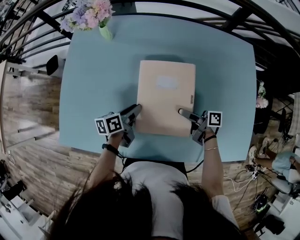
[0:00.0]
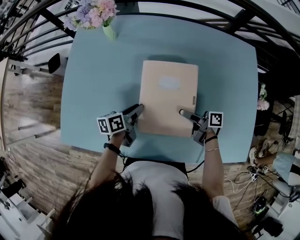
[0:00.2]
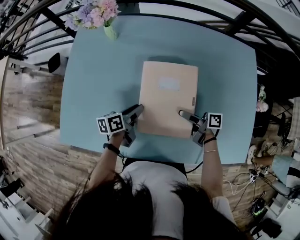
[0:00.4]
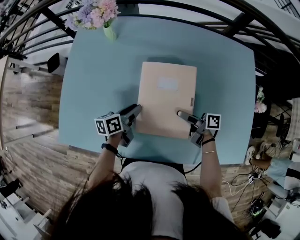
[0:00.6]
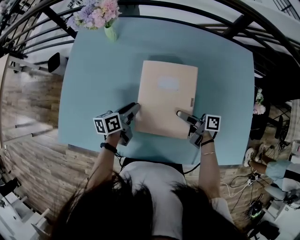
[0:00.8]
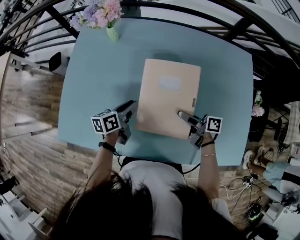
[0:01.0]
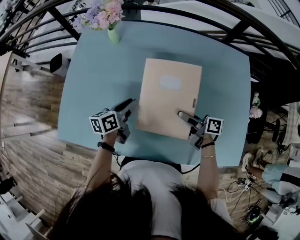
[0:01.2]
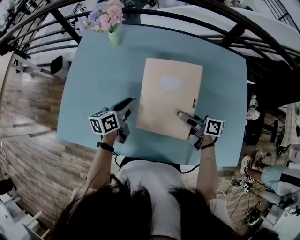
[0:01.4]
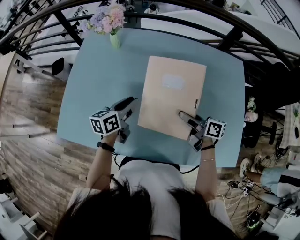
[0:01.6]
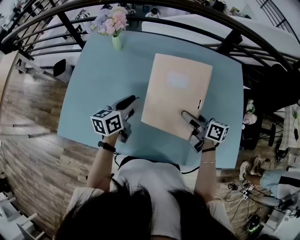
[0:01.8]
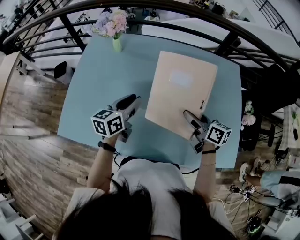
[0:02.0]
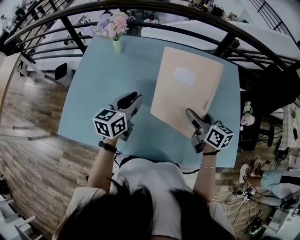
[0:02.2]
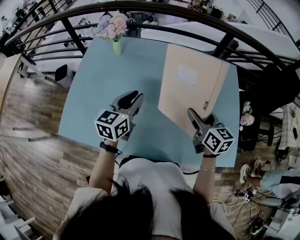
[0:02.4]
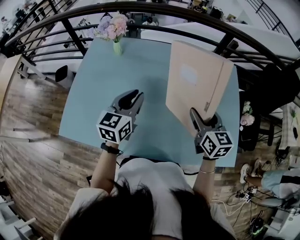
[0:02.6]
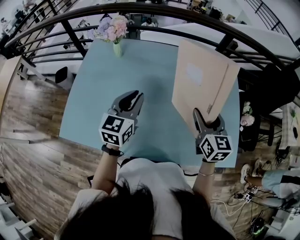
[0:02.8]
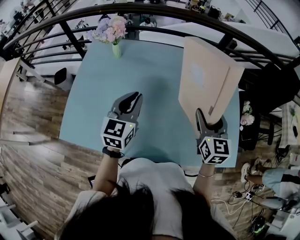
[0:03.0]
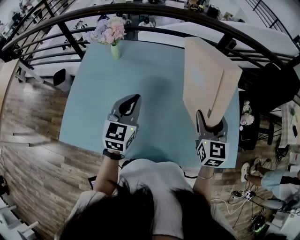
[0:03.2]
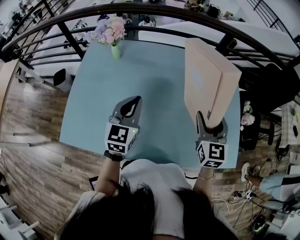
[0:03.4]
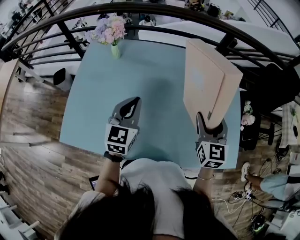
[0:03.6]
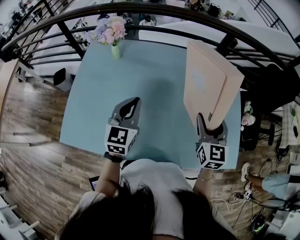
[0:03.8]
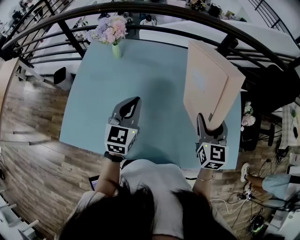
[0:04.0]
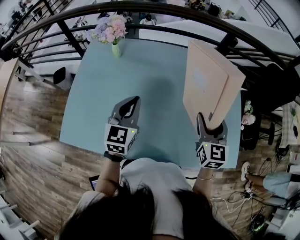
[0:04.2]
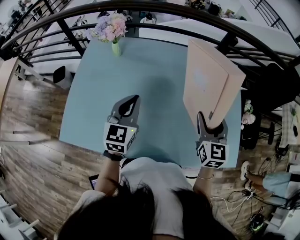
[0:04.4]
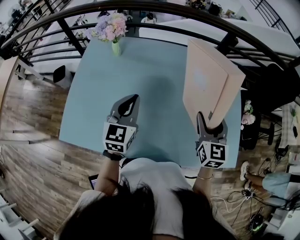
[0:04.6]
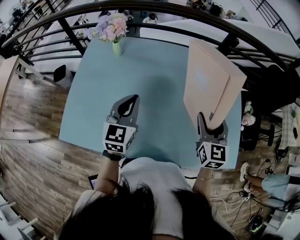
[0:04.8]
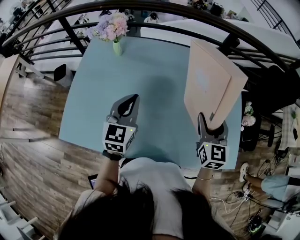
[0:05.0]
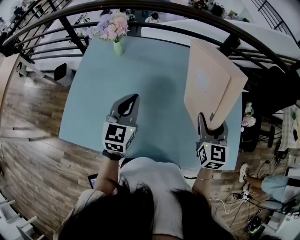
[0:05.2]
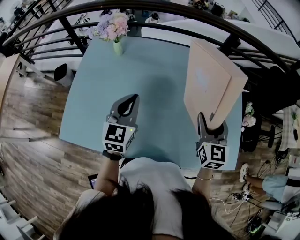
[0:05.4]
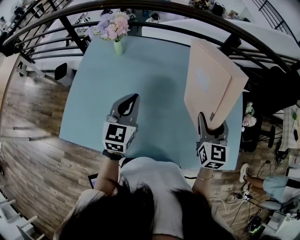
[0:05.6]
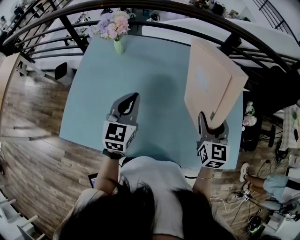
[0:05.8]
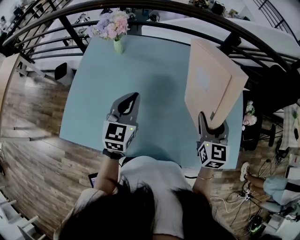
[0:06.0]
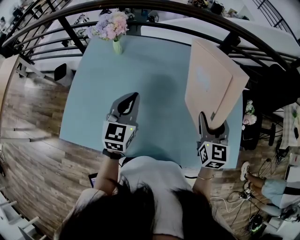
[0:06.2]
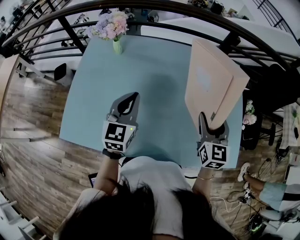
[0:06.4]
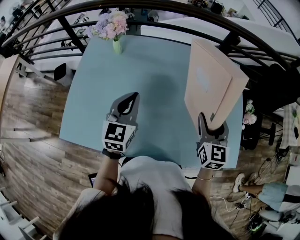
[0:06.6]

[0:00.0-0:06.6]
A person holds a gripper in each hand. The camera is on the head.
0:00.0 to 0:01.6: Both grippers travel together upward, approximately 10 cm. The right gripper turns by some 20 degrees. Meanwhile the left gripper rotates approximately 20 degrees.
0:01.6 to 0:03.2: The left gripper travels upward by roughly 15 cm, rolls clockwise, seen from behind, by some 40 degrees, and closes; the right gripper shifts some 15 cm upward and to the right, and changes its angle by roughly 70 degrees.
0:03.2 to 0:05.0: The grippers stay close to where they were, moving slightly.
0:05.0 to 0:06.6: Both grippers stay about where they are.

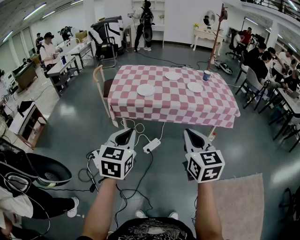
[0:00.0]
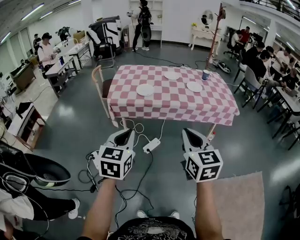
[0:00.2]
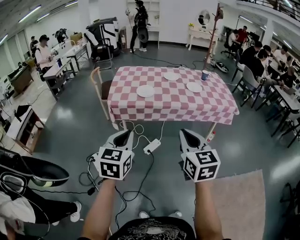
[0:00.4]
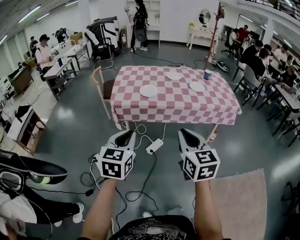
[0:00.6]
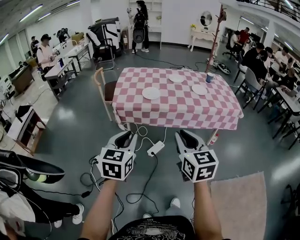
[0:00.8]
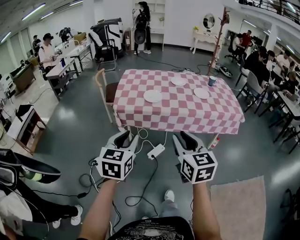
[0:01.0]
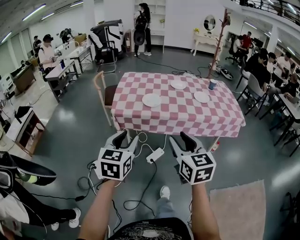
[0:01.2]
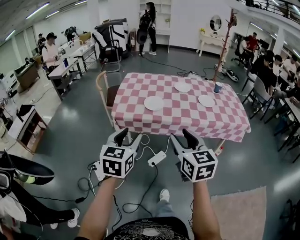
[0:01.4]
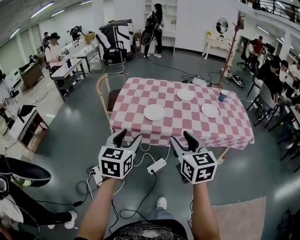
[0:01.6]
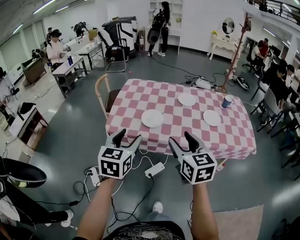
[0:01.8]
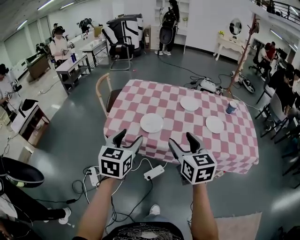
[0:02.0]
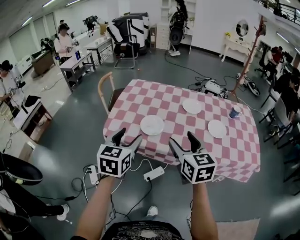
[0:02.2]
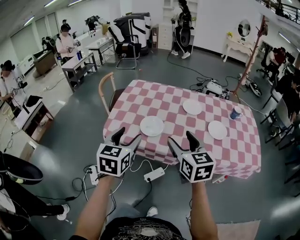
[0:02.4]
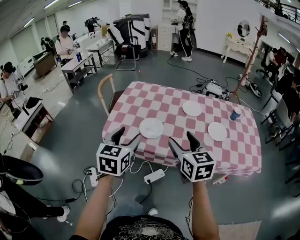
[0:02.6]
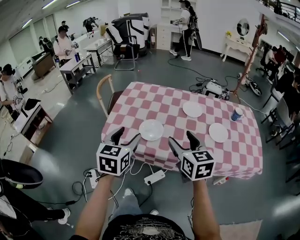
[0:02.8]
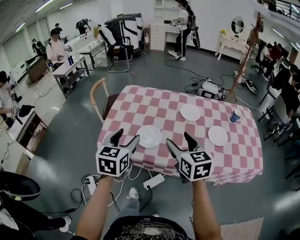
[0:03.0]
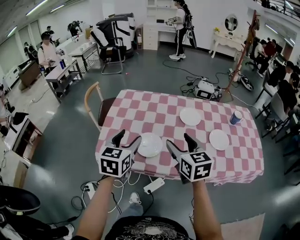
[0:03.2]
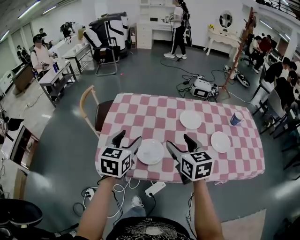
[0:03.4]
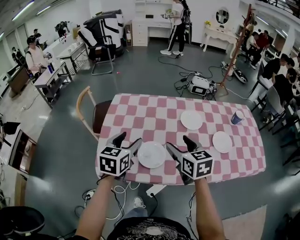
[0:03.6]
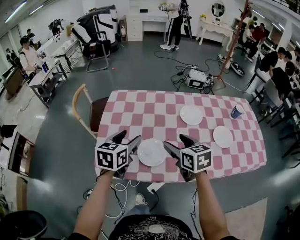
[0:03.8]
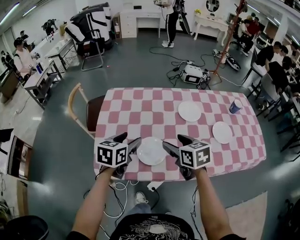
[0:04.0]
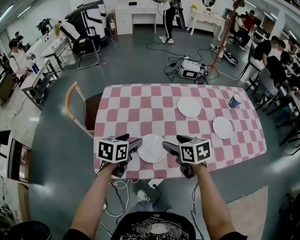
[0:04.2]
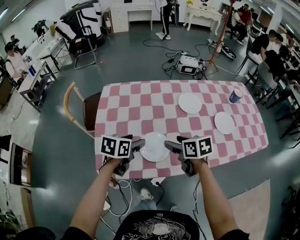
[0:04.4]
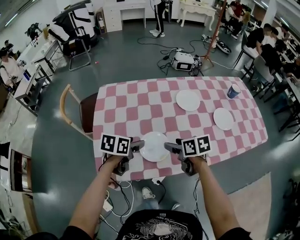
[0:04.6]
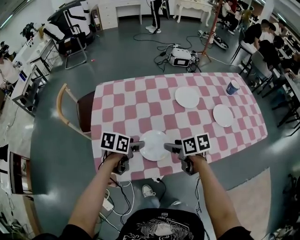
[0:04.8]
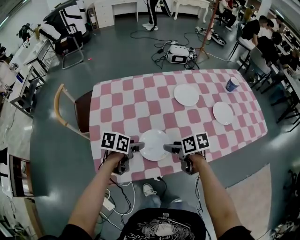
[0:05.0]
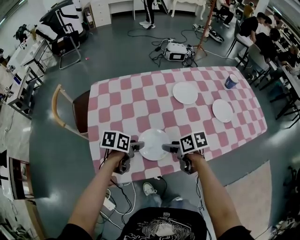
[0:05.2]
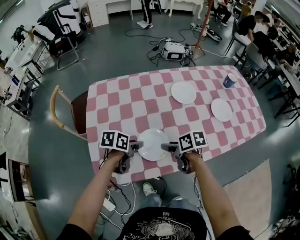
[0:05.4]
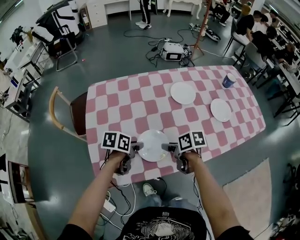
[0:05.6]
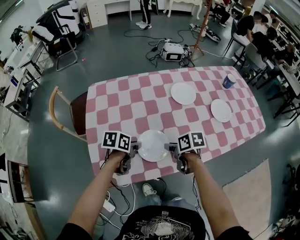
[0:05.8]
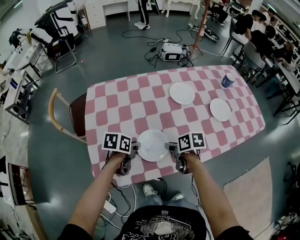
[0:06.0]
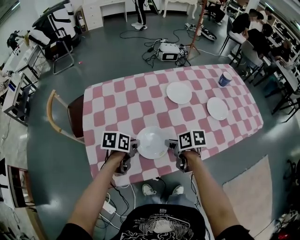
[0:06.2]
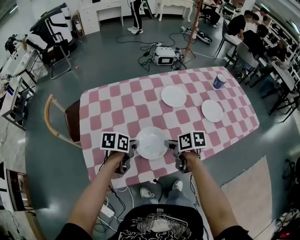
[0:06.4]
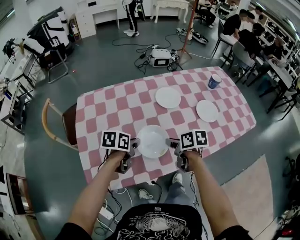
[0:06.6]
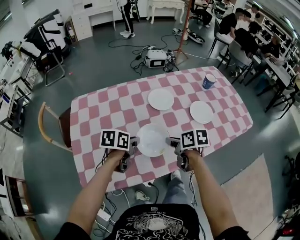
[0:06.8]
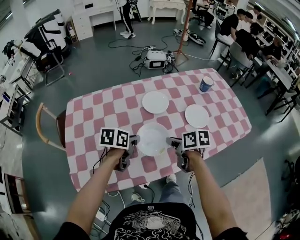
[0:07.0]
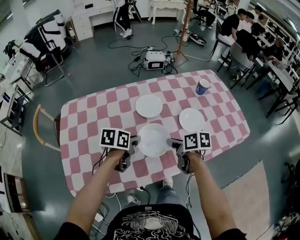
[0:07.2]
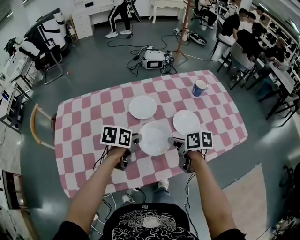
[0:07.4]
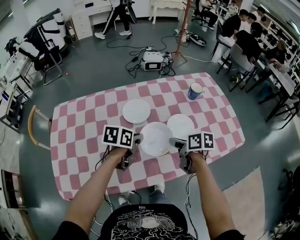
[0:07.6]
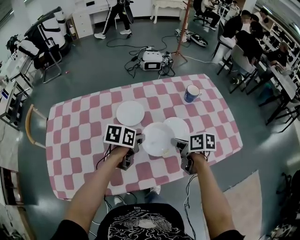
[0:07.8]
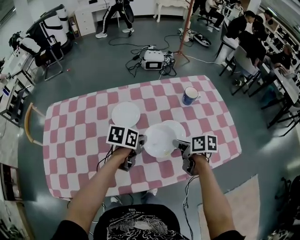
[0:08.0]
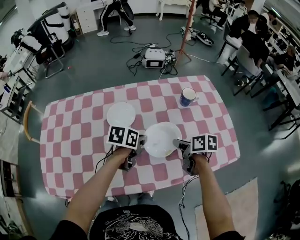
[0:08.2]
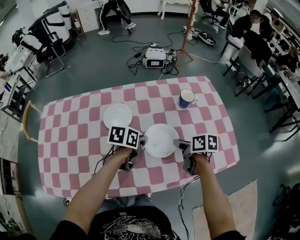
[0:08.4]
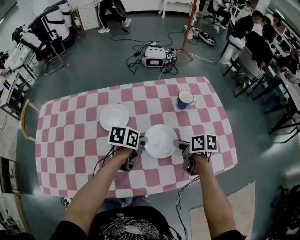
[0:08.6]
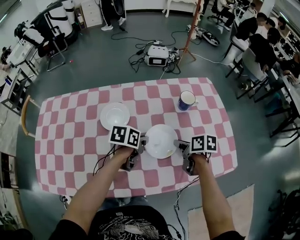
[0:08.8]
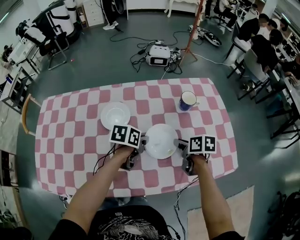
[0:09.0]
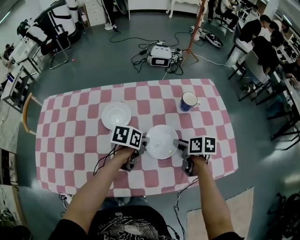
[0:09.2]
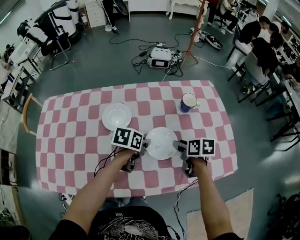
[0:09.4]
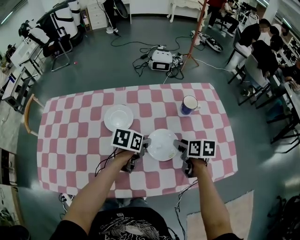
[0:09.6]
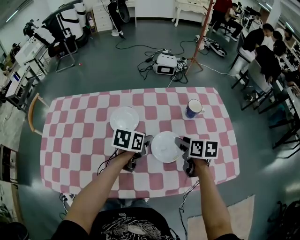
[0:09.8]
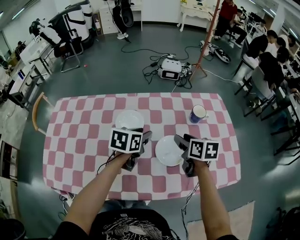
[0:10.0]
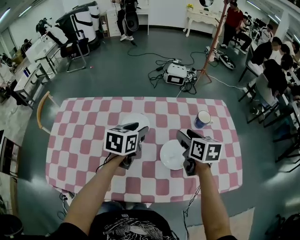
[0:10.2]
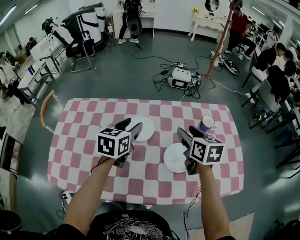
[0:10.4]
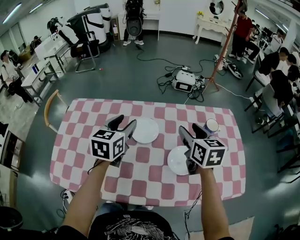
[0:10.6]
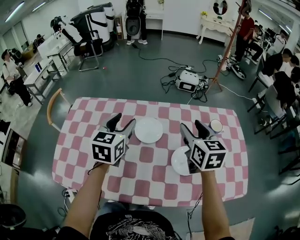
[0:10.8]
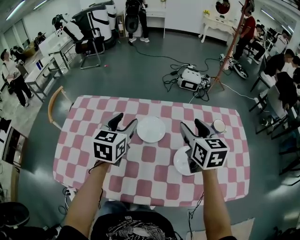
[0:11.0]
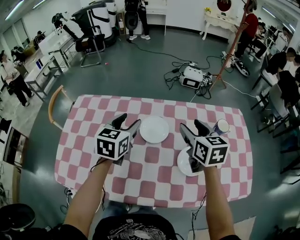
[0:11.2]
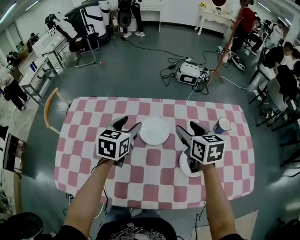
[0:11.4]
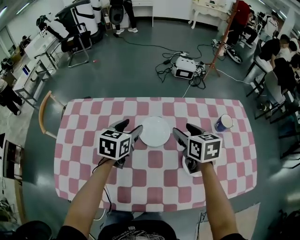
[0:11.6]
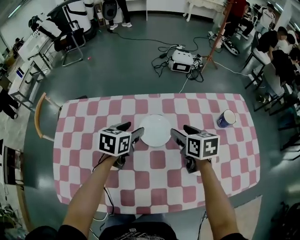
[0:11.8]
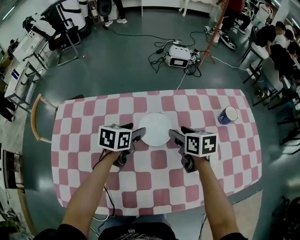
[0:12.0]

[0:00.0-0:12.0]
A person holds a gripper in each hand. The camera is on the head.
0:00.0 to 0:01.6: The grippers both shift forward by approximately 25 cm. The right gripper opens its fingers. Meanwhile the left gripper opens up.
0:01.6 to 0:03.0: Both grippers move forward, approximately 25 cm.
0:03.0 to 0:04.4: The two grippers go about 20 cm downward and forward. The right gripper swivels some 30 degrees. The left gripper rotates approximately 40 degrees.
0:04.4 to 0:06.0: The grippers both shift downward by some 10 cm. The left gripper changes its angle by some 20 degrees, and closes up, while the right gripper turns by roughly 30 degrees, and closes up.
0:06.0 to 0:07.6: The two grippers go some 30 cm to the right and forward.
0:07.6 to 0:09.0: Both grippers move to the right and forward, approximately 15 cm.
0:09.0 to 0:10.4: The two grippers go about 20 cm upward and to the left. The left gripper swivels approximately 40 degrees, and opens. Meanwhile the right gripper swivels roughly 40 degrees, and opens its fingers.
0:10.4 to 0:12.0: The left gripper heads downward, to the left and forward, covering some 20 cm, and changes its angle by roughly 20 degrees, while the right gripper goes roughly 20 cm downward and to the left.

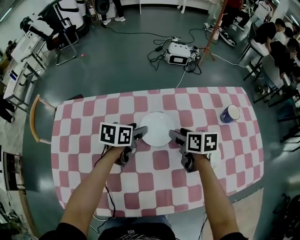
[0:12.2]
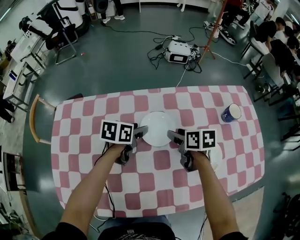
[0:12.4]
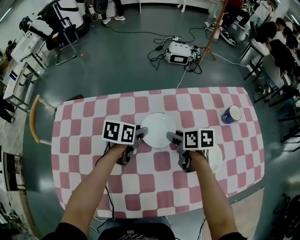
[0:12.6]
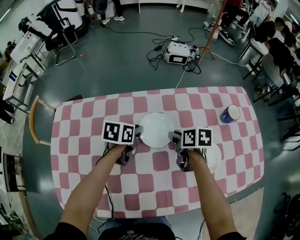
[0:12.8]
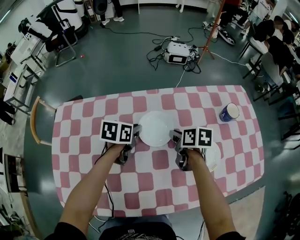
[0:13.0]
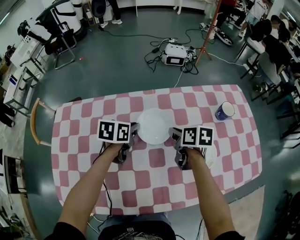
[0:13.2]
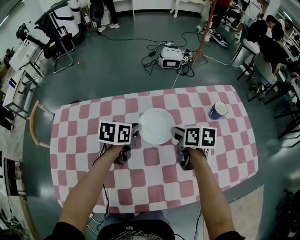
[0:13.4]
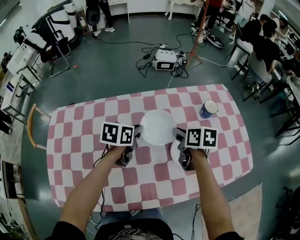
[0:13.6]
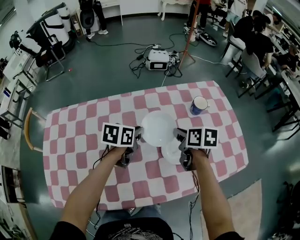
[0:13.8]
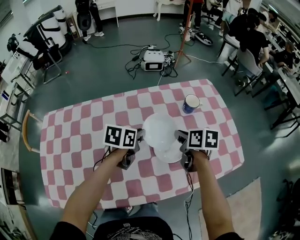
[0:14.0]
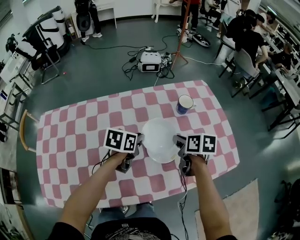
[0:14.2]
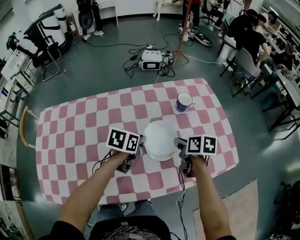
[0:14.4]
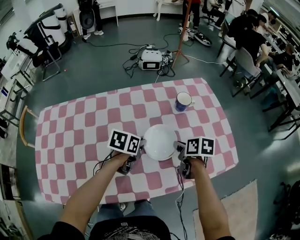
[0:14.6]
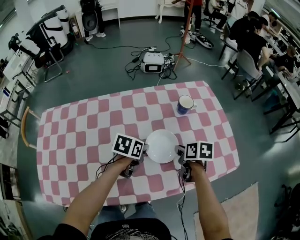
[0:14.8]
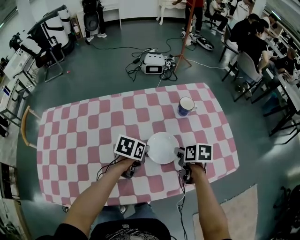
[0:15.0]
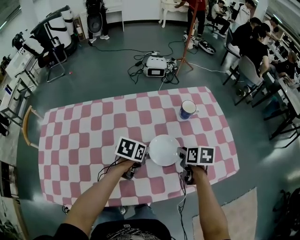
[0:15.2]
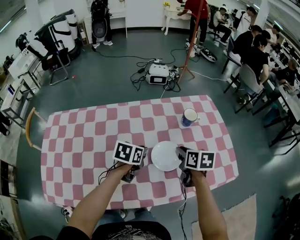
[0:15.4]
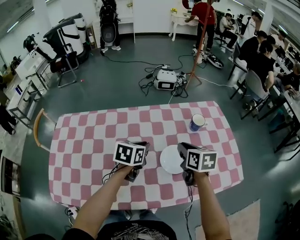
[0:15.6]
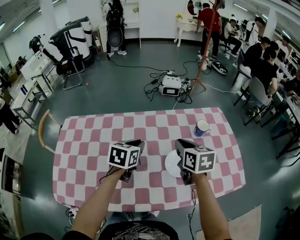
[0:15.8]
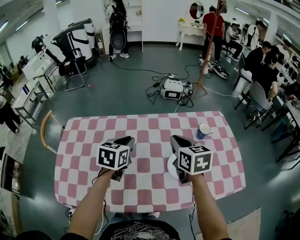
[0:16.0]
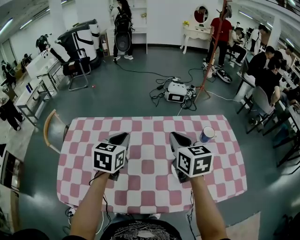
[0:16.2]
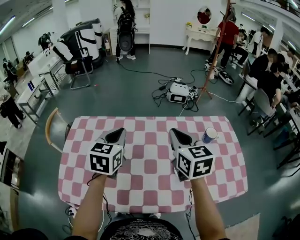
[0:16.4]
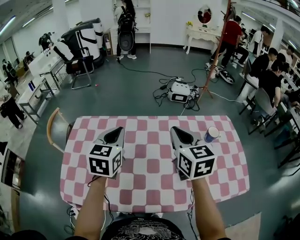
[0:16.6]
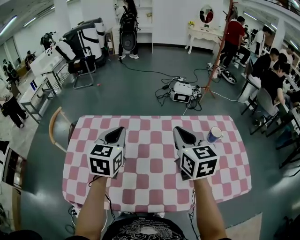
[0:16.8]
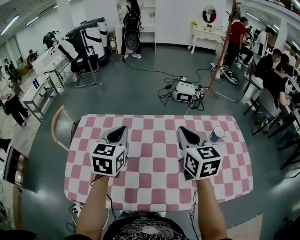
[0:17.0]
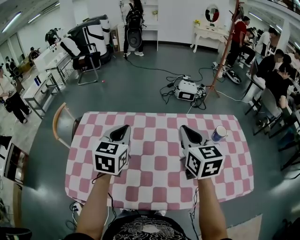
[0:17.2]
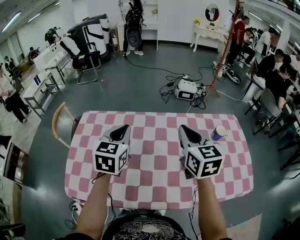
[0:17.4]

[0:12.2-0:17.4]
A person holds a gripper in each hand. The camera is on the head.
0:12.2 to 0:14.0: Both grippers travel together to the right, approximately 20 cm. The left gripper closes up. The right gripper closes its fingers.
0:14.0 to 0:15.6: The right gripper moves upward, some 5 cm.
0:15.6 to 0:17.4: The left gripper is displaced to the left and upward by approximately 25 cm, and turns by about 30 degrees. Meanwhile the right gripper travels upward and to the left by roughly 25 cm, and swivels roughly 30 degrees.
